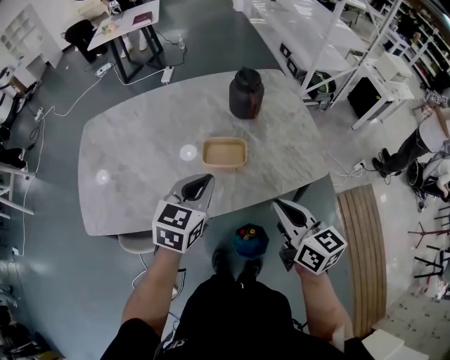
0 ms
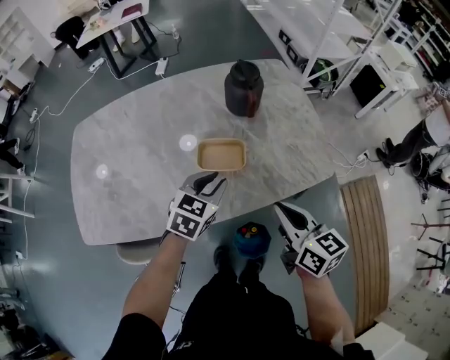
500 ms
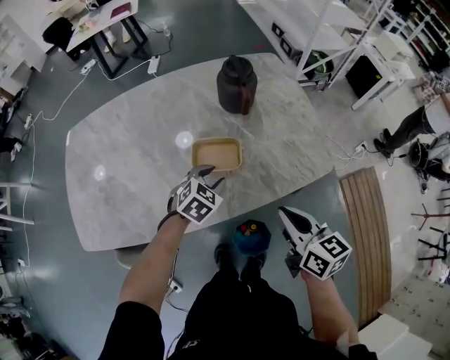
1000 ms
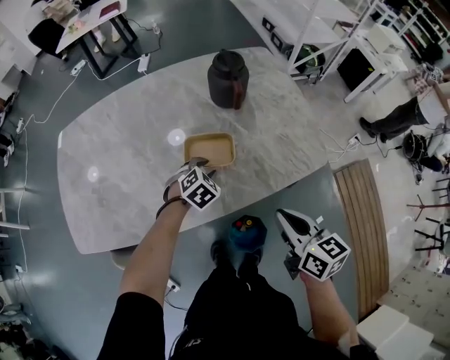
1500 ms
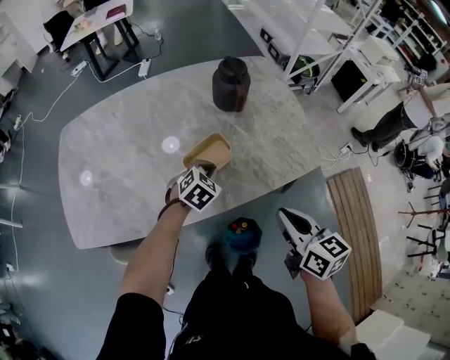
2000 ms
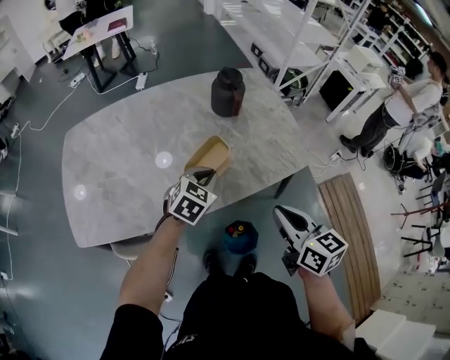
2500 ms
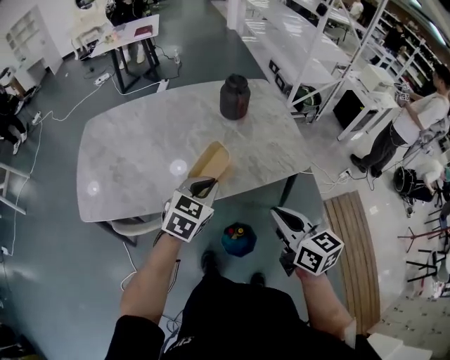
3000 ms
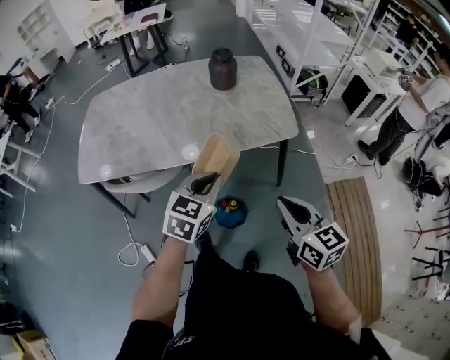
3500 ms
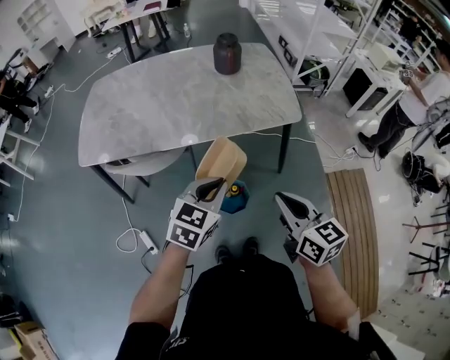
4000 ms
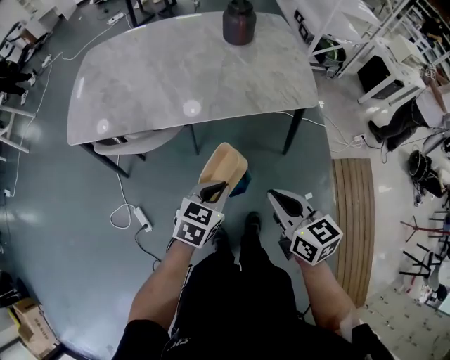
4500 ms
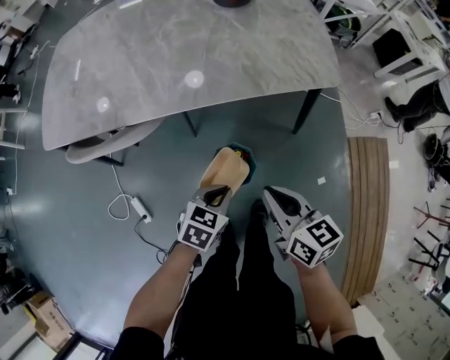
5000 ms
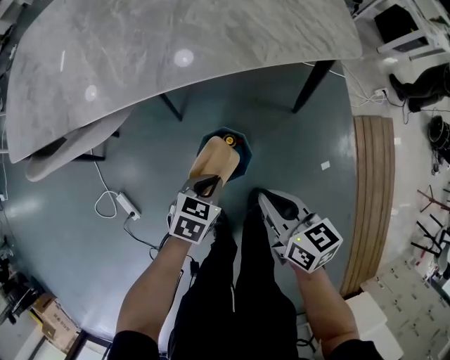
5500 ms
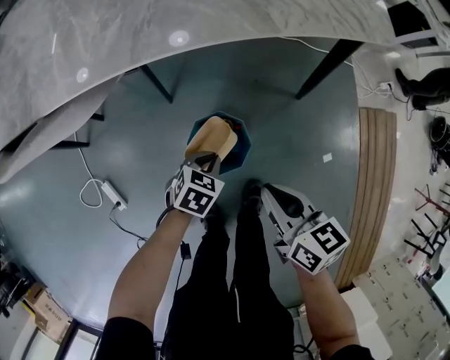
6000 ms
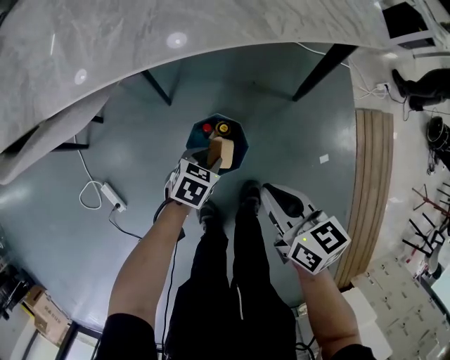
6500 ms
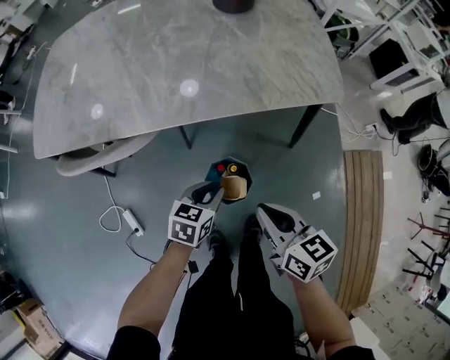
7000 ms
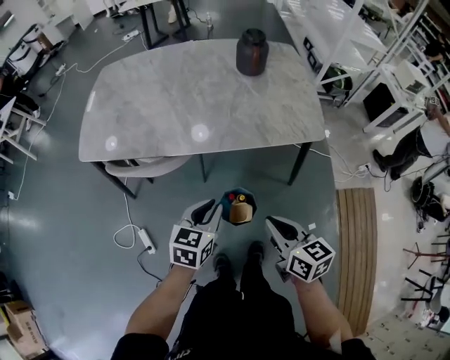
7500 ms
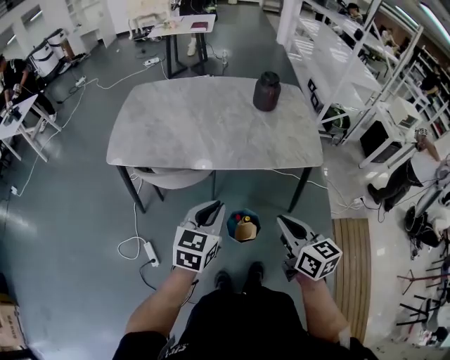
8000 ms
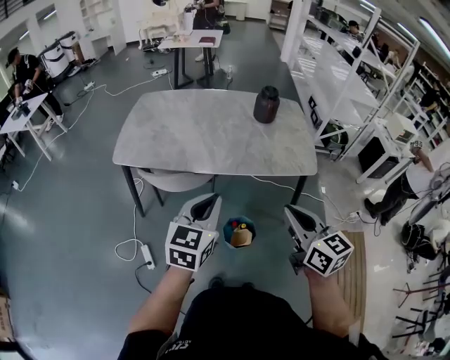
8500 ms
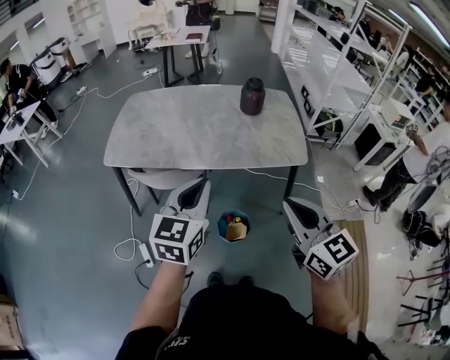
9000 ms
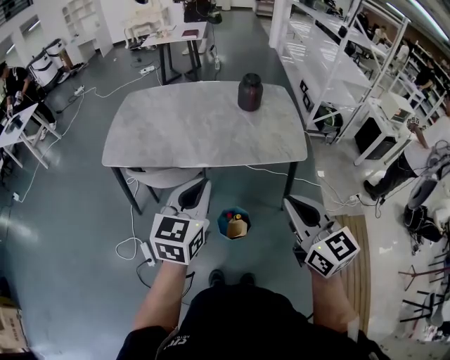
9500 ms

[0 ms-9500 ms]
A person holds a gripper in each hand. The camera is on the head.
0 ms to 2000 ms: The left gripper is displaced downward and forward by some 20 cm, turns by about 30 degrees, and opens, then closes again. The right gripper shifts by approximately 5 cm.
2000 ms to 4000 ms: The right gripper goes approximately 25 cm backward. The left gripper goes about 40 cm backward and upward, and turns by approximately 30 degrees.
4000 ms to 5500 ms: The two grippers go approximately 35 cm downward. The right gripper turns by some 20 degrees. Meanwhile the left gripper rotates about 30 degrees.
5500 ms to 7500 ms: The grippers both shift upward by approximately 25 cm. The left gripper swivels approximately 30 degrees.
7500 ms to 9500 ms: Both grippers travel together upward, approximately 25 cm. The right gripper changes its angle by some 30 degrees; the left gripper turns by approximately 20 degrees.

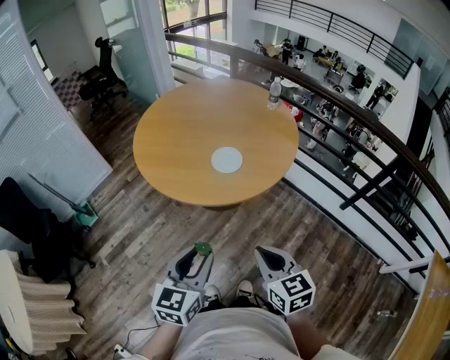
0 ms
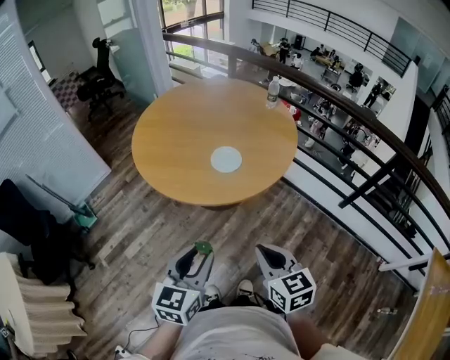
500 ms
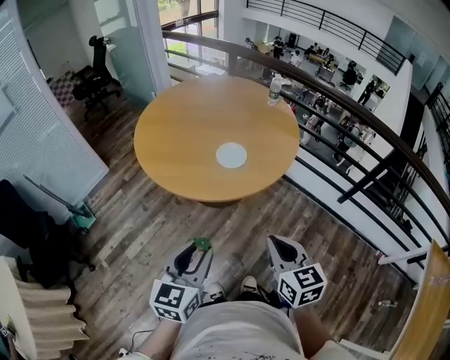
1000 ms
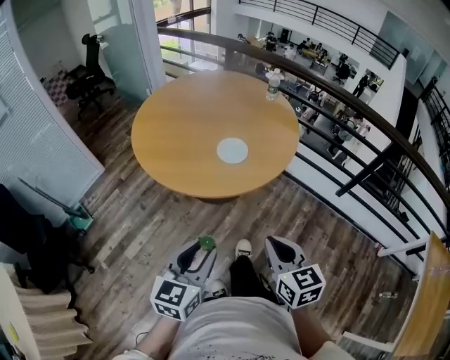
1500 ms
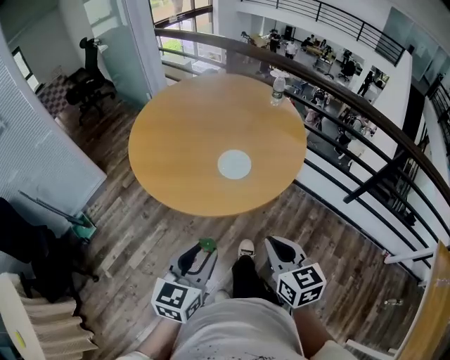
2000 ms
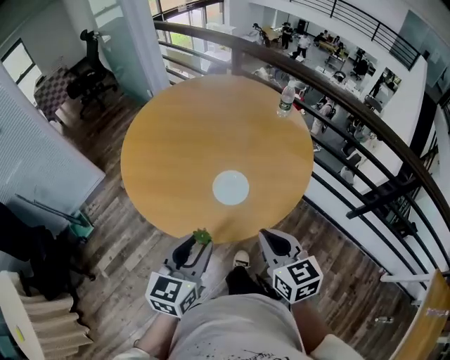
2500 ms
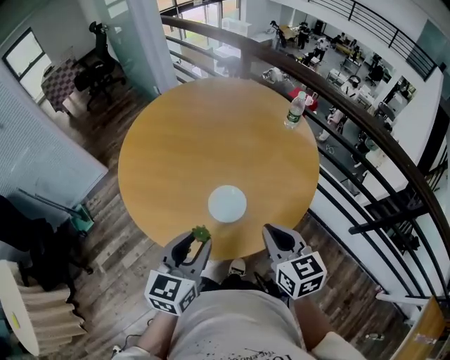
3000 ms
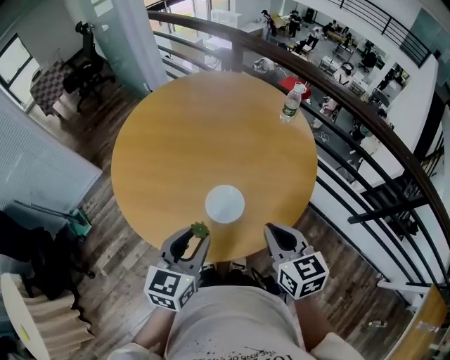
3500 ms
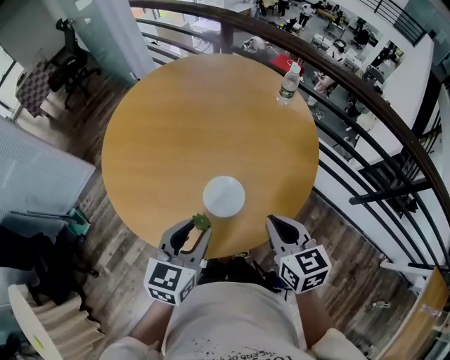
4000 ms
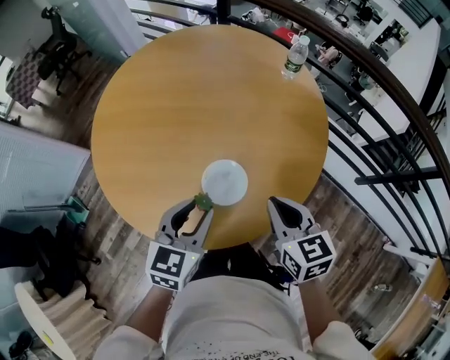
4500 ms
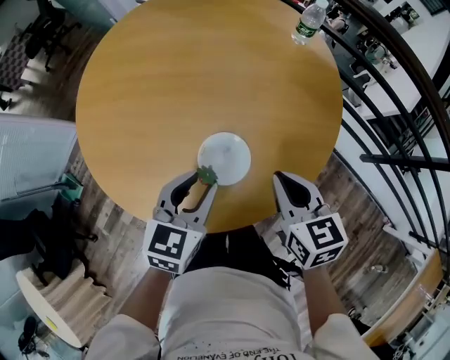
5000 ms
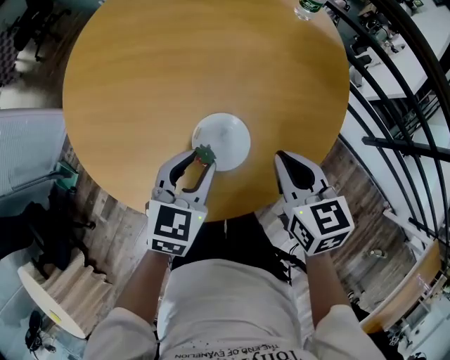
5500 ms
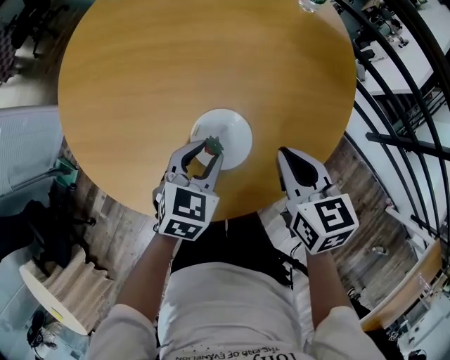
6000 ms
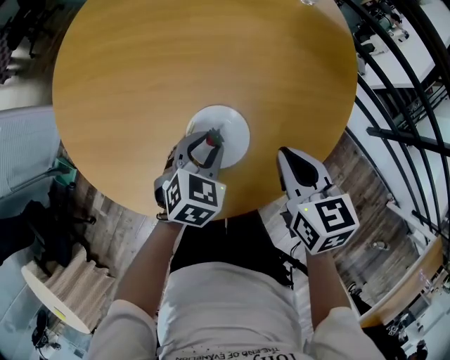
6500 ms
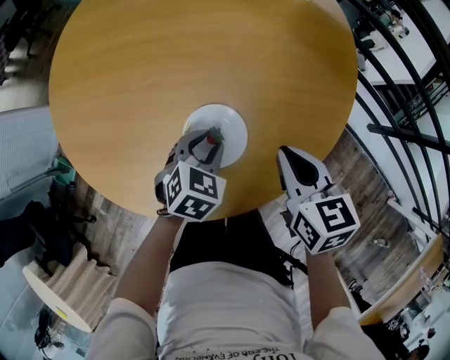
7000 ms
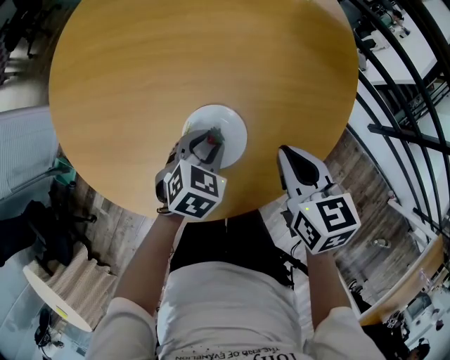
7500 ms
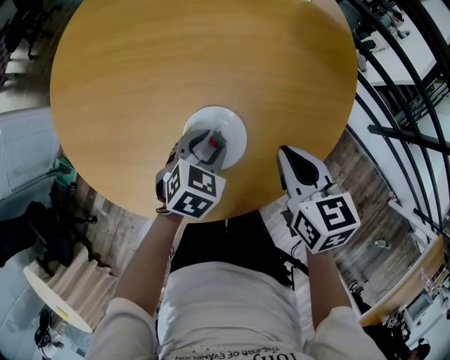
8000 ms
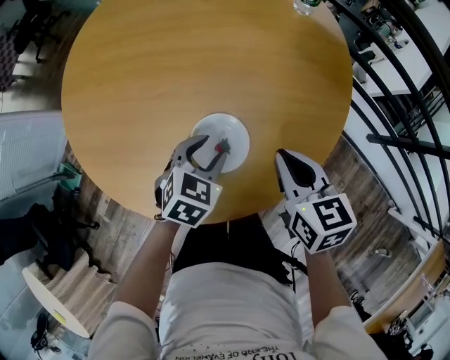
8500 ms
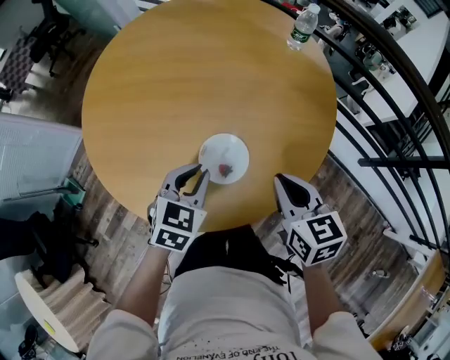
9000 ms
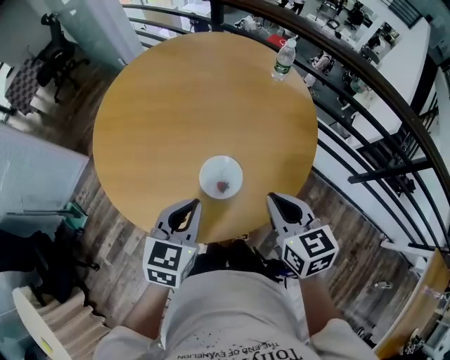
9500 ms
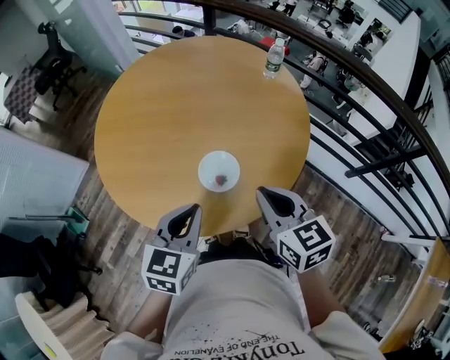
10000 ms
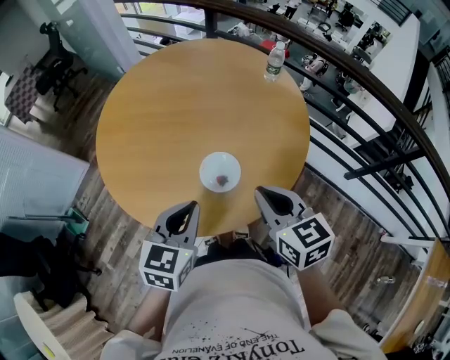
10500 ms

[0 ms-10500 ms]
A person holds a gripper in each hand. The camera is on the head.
0 ms to 2000 ms: The left gripper travels forward and to the left by approximately 10 cm; the right gripper goes approximately 10 cm forward.
2000 ms to 4000 ms: The grippers both shift forward by about 30 cm.
4000 ms to 6500 ms: The right gripper goes some 15 cm downward and forward; the left gripper travels downward and forward by some 25 cm, and rotates some 30 degrees.
6500 ms to 8500 ms: The grippers move only a little.
8500 ms to 10500 ms: Both grippers move upward and backward, roughly 25 cm. The left gripper rotates roughly 30 degrees, and closes.

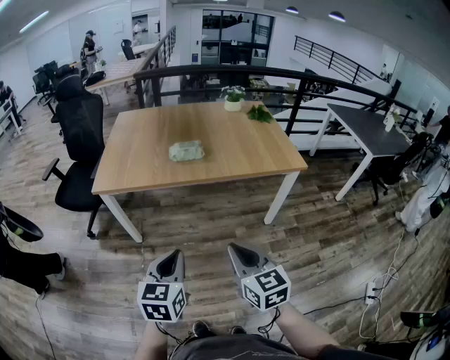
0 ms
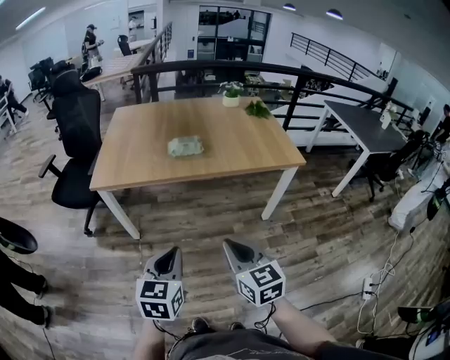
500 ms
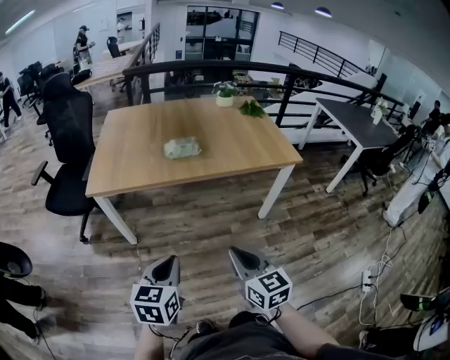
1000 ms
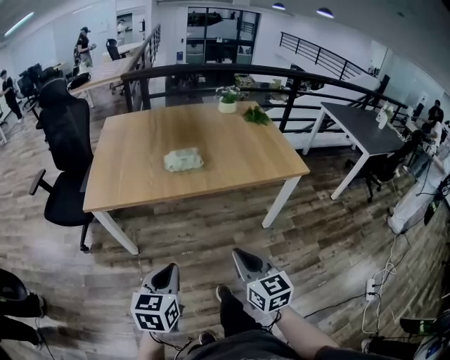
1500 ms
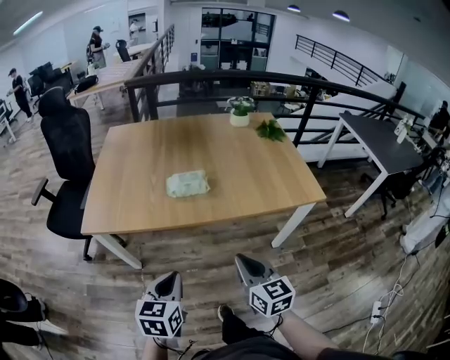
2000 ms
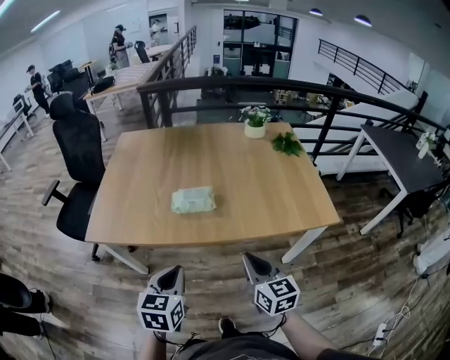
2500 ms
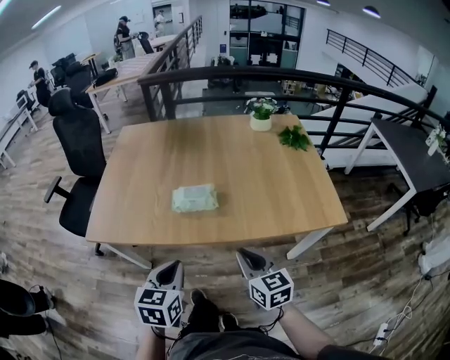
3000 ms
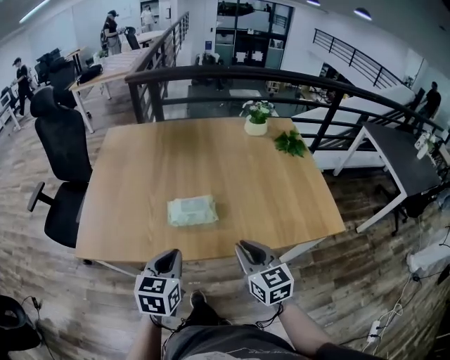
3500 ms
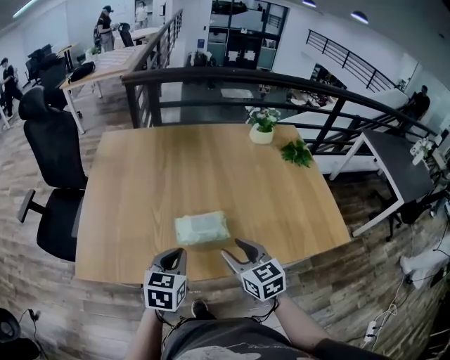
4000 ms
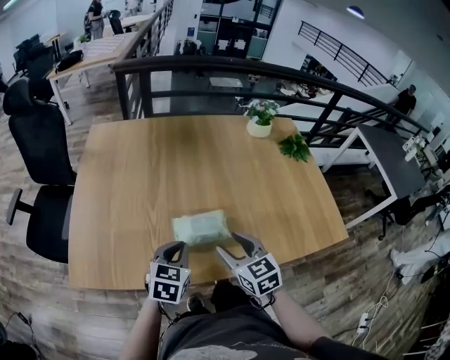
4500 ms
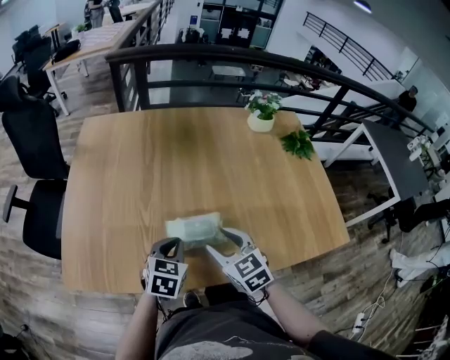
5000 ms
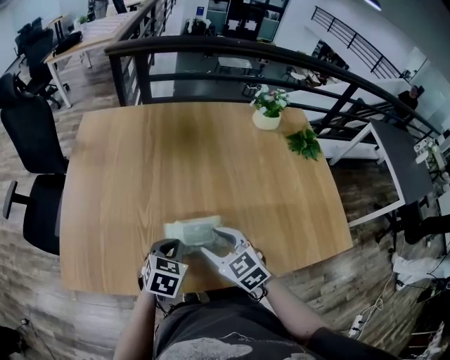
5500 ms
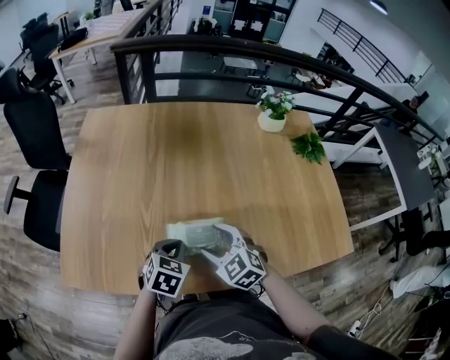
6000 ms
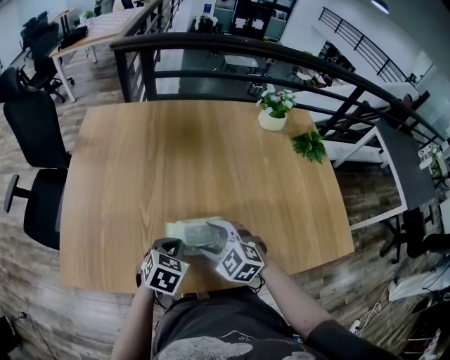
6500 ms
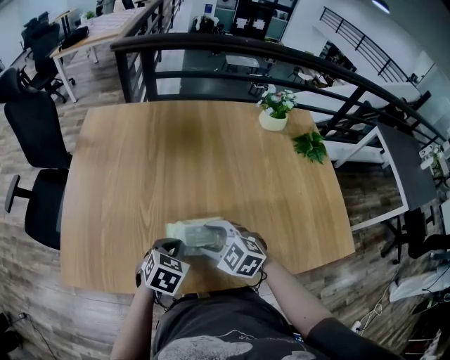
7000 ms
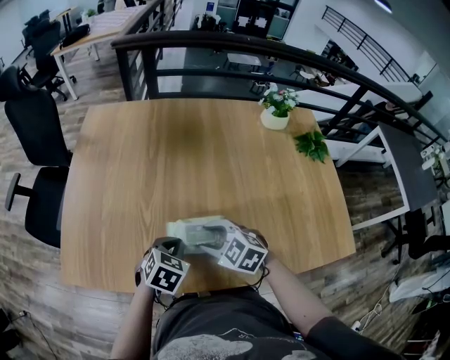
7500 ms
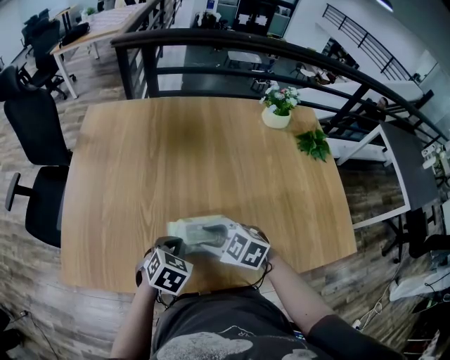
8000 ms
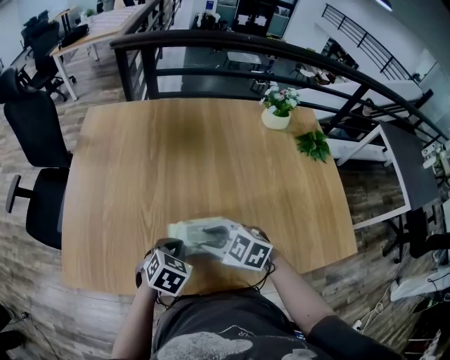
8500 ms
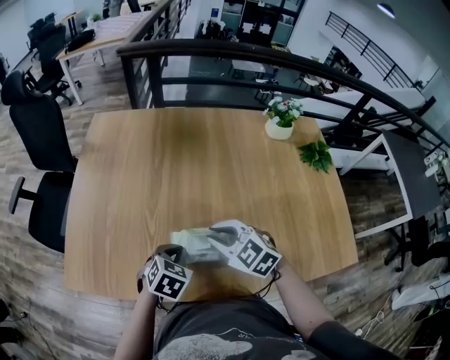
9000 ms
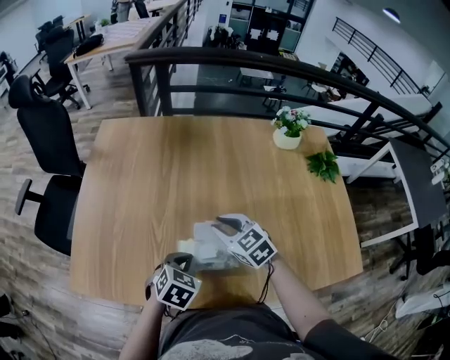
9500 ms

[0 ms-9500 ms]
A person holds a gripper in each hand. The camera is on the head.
0 ms to 2000 ms: Both grippers travel together forward, about 20 cm.
2000 ms to 4000 ms: The grippers both shift forward by roughly 30 cm. The right gripper opens up.
4000 ms to 5500 ms: Both grippers move forward and downward, roughly 10 cm. The right gripper turns by roughly 20 degrees.
5500 ms to 7500 ms: The right gripper swivels some 20 degrees.
7500 ms to 9500 ms: The right gripper heads forward, covering roughly 10 cm, changes its angle by some 20 degrees, and closes up.
